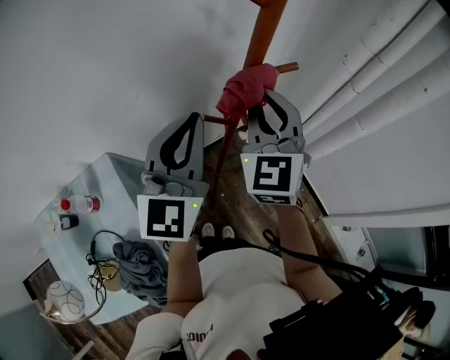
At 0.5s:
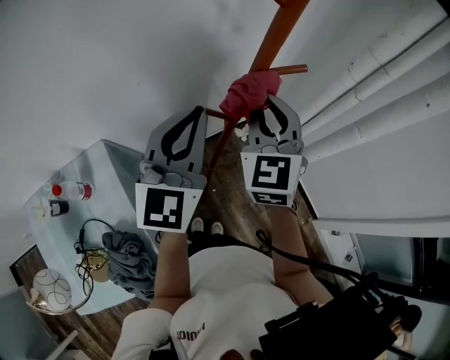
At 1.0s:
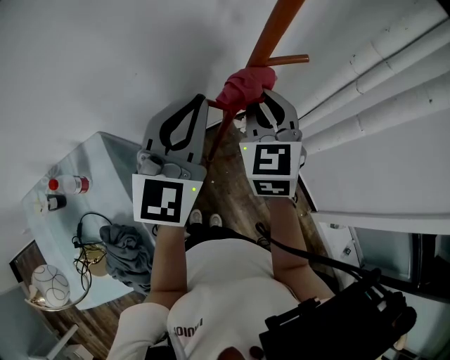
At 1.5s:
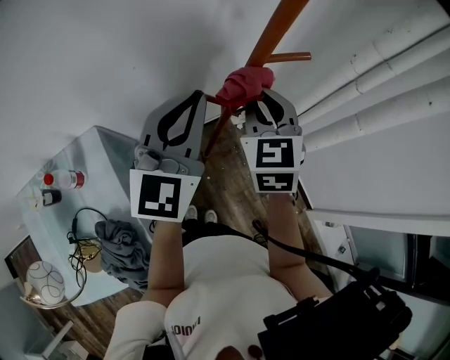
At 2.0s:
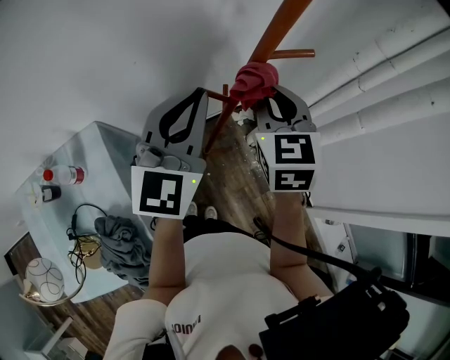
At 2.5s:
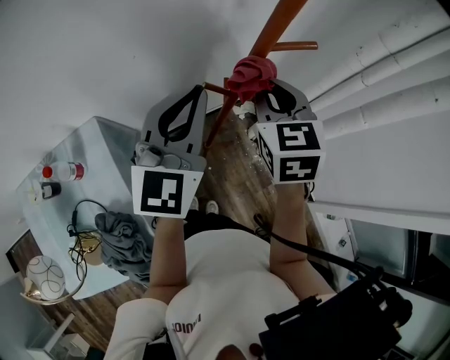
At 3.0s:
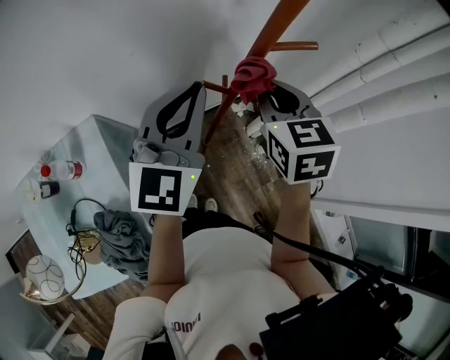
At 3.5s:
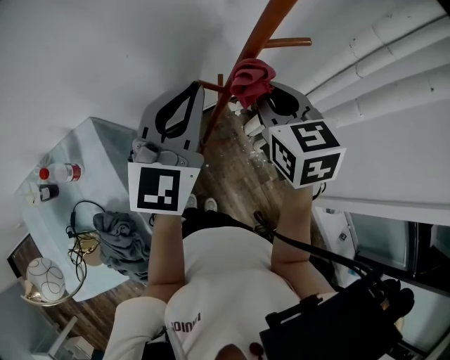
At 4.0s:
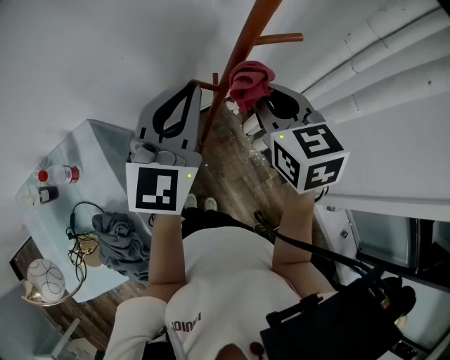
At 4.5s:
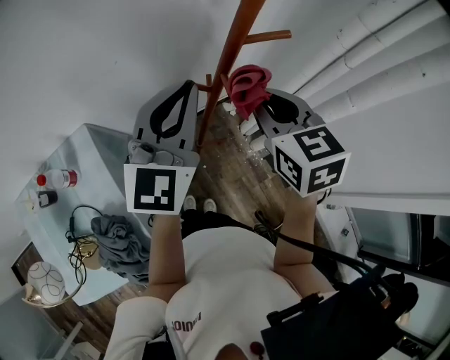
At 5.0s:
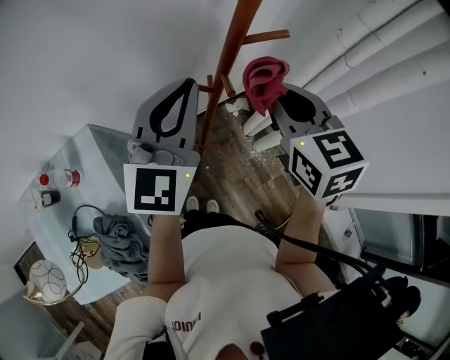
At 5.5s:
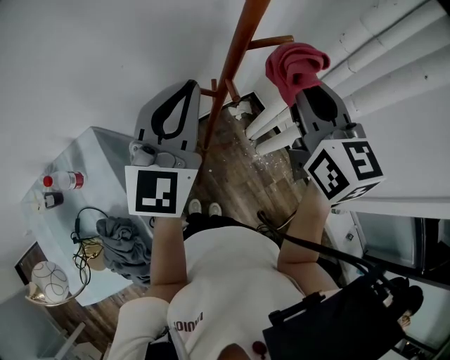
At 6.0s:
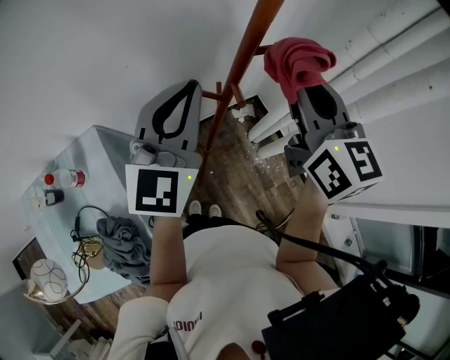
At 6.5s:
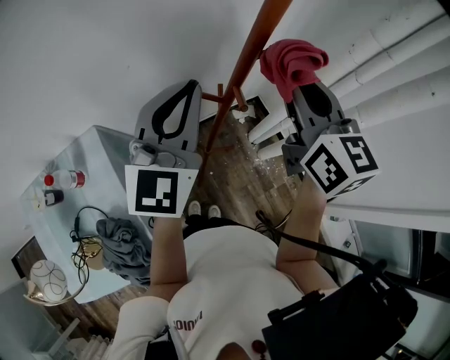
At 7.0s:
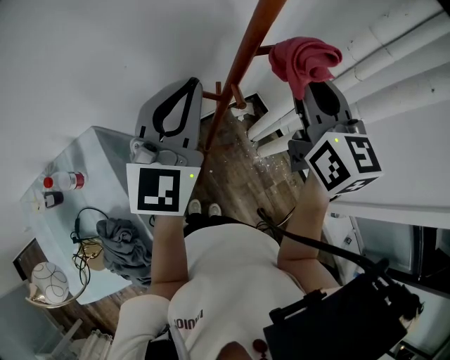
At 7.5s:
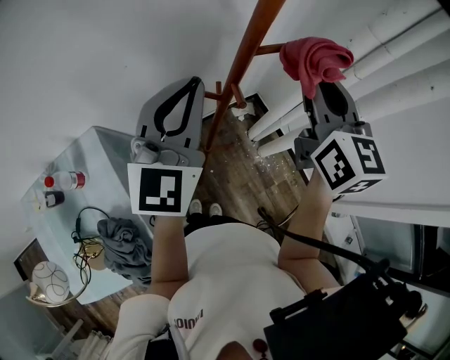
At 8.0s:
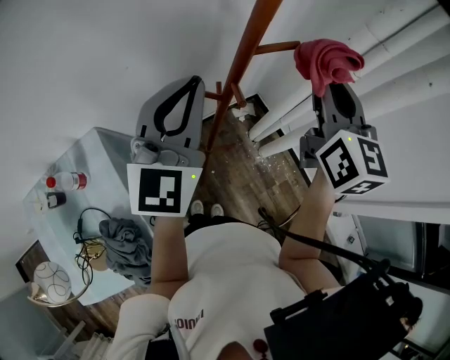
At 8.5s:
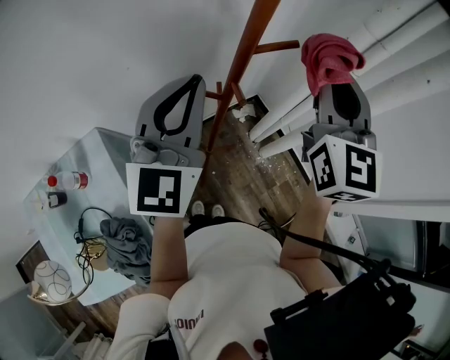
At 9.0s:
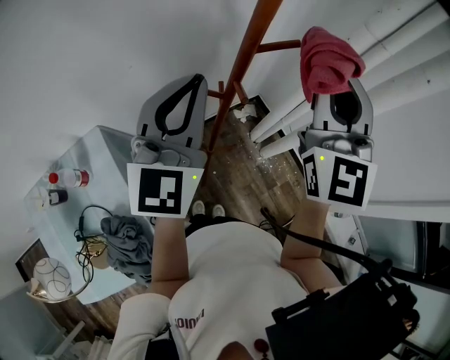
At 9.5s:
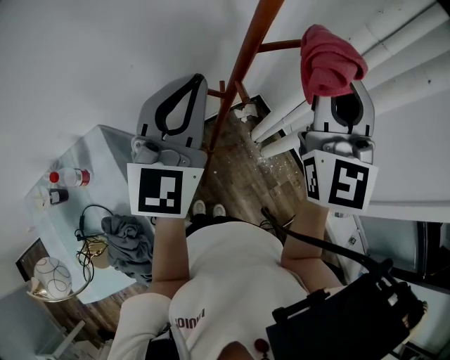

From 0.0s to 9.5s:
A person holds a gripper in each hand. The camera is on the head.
From 2.0s to 4.0s: The grippers move only a little.
From 4.0s to 5.5s: The right gripper heads upward, covering approximately 10 cm, and changes its angle by some 20 degrees.
From 5.5s to 7.5s: There are only small adjustments of the grippers.
From 7.5s to 9.5s: The right gripper travels upward by about 5 cm, and turns by approximately 30 degrees.

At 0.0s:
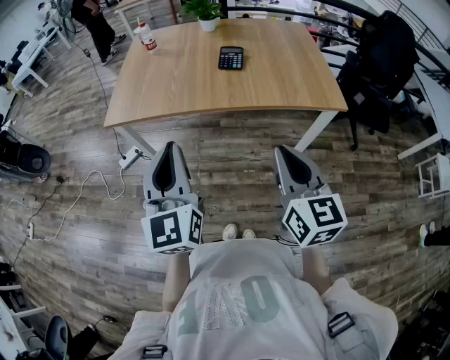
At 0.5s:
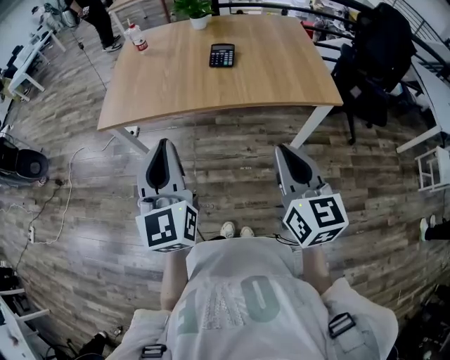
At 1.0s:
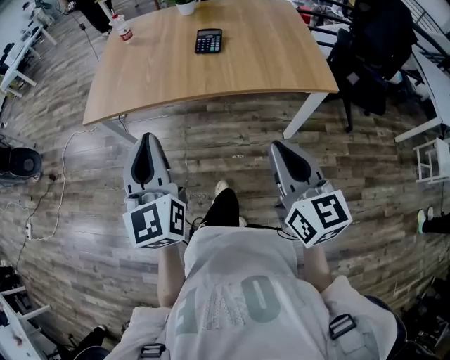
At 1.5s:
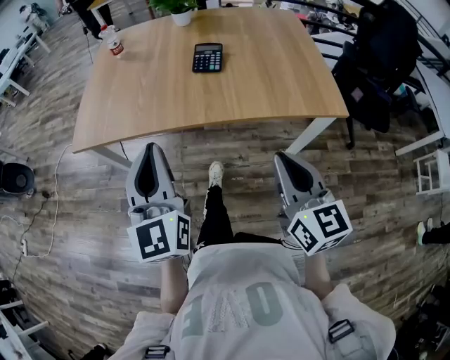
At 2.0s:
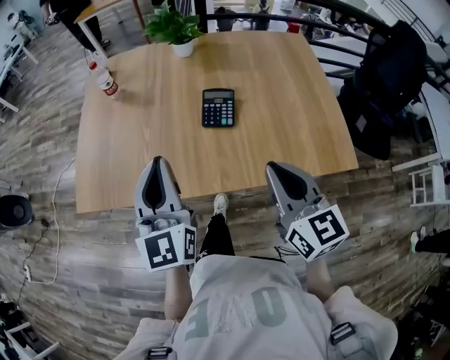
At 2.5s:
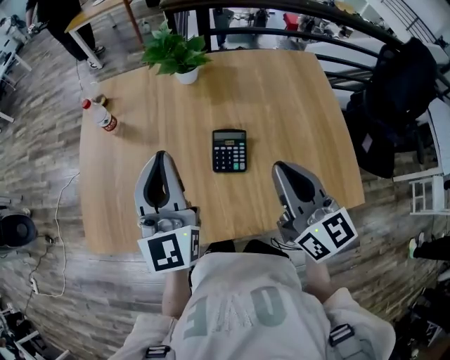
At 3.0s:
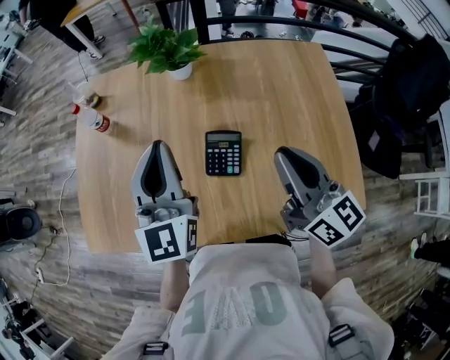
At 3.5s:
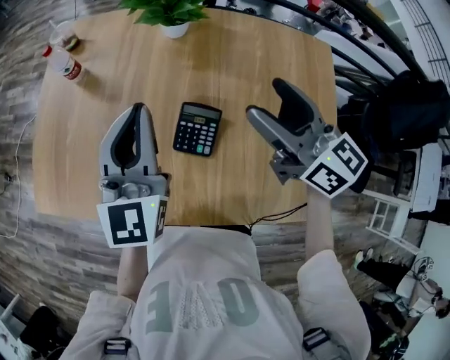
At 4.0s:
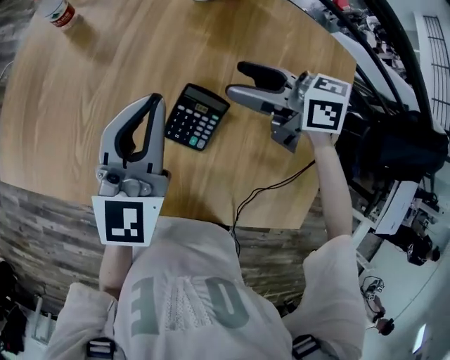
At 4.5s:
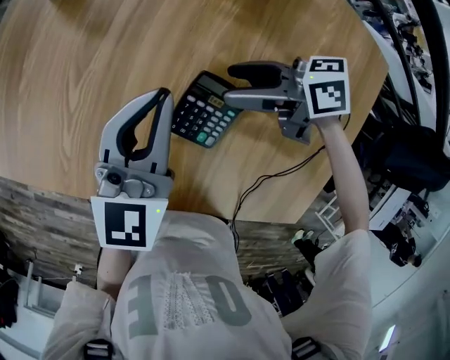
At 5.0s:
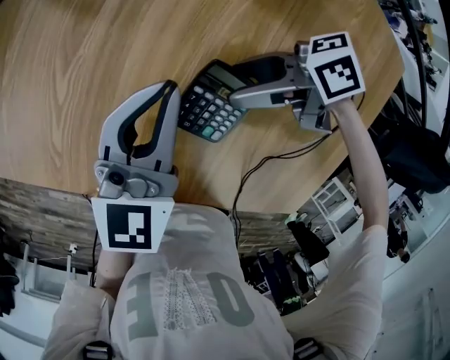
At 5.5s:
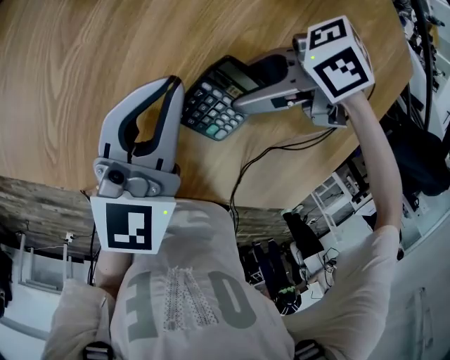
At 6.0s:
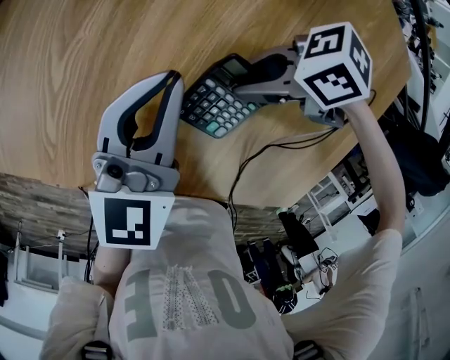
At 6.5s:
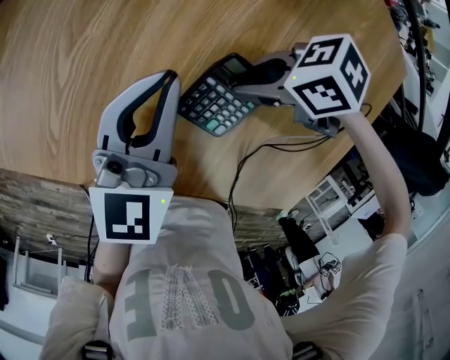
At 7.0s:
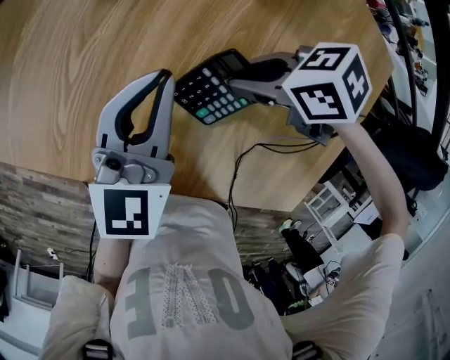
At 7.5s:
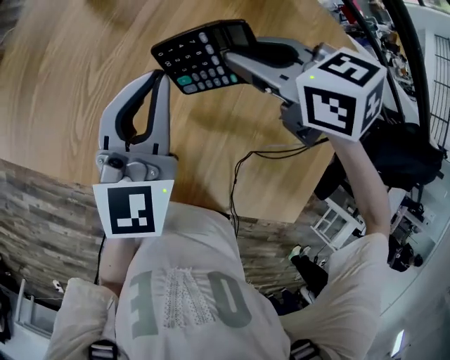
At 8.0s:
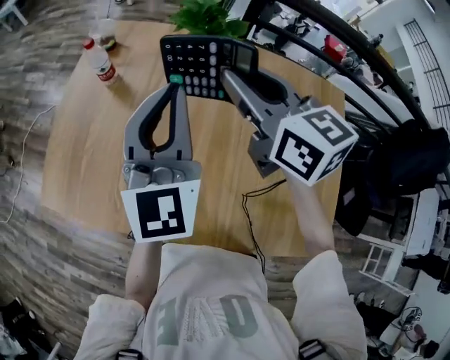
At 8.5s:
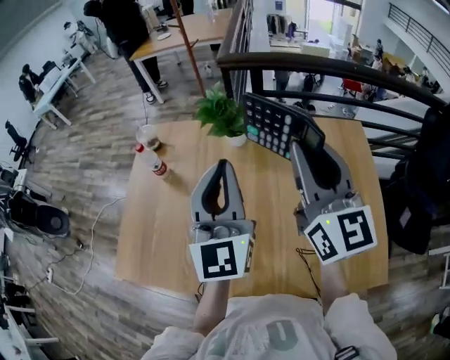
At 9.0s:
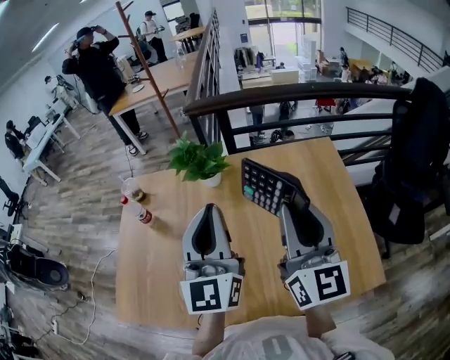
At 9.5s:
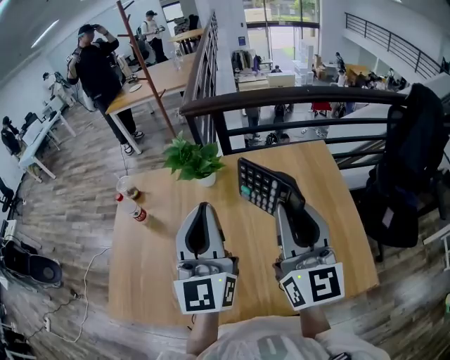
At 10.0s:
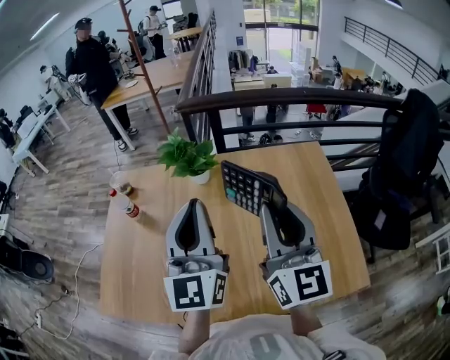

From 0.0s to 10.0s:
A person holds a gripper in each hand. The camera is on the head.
From 0.0s to 2.0s: Both grippers move forward, about 35 cm.
From 2.0s to 4.0s: The right gripper ends up roughly 40 cm from where it was, changes its angle by roughly 70 degrees, and opens its fingers, while the left gripper moves roughly 25 cm.
From 4.0s to 6.0s: Both grippers travel together downward, approximately 15 cm. The right gripper swivels roughly 60 degrees, and closes up.
From 6.0s to 8.0s: The grippers both shift upward by approximately 30 cm. The left gripper rotates approximately 30 degrees. Meanwhile the right gripper changes its angle by roughly 90 degrees.
From 8.0s to 10.0s: The right gripper changes place by about 20 cm, and swivels approximately 50 degrees. Meanwhile the left gripper moves approximately 15 cm.

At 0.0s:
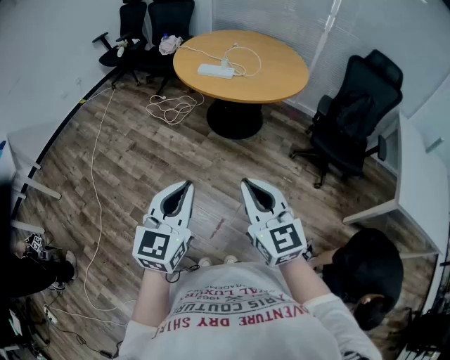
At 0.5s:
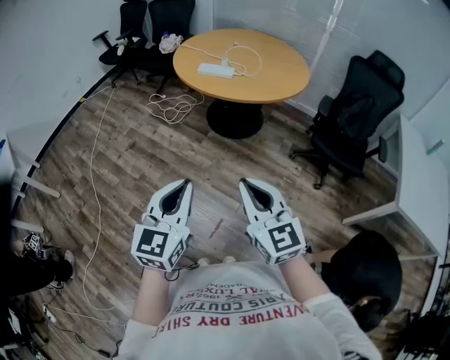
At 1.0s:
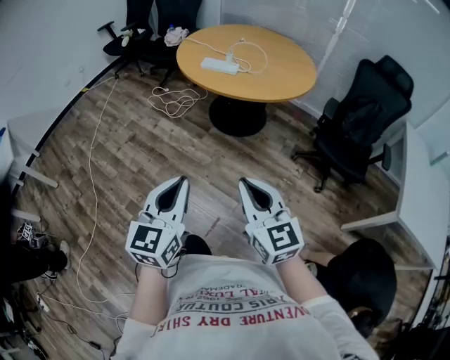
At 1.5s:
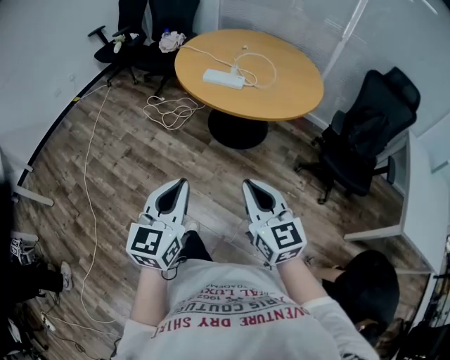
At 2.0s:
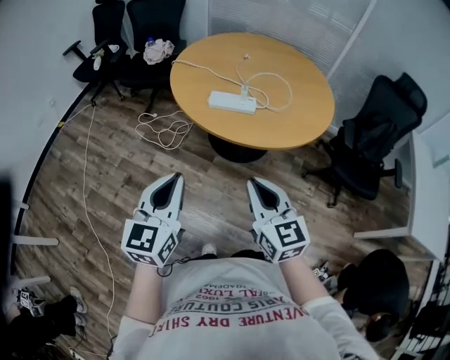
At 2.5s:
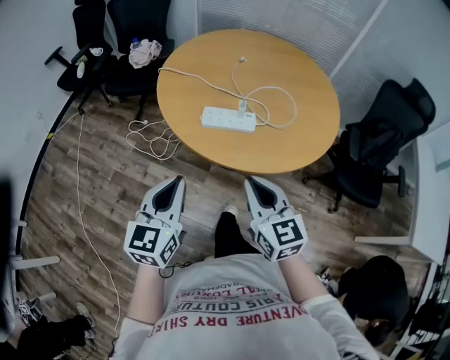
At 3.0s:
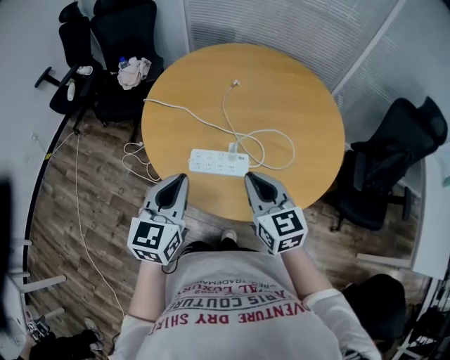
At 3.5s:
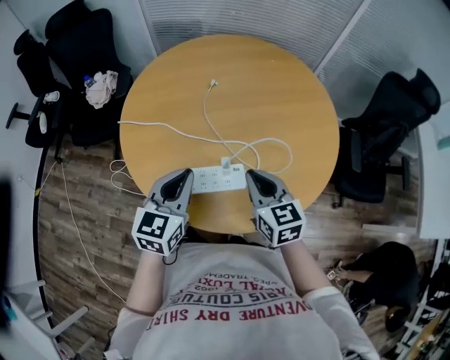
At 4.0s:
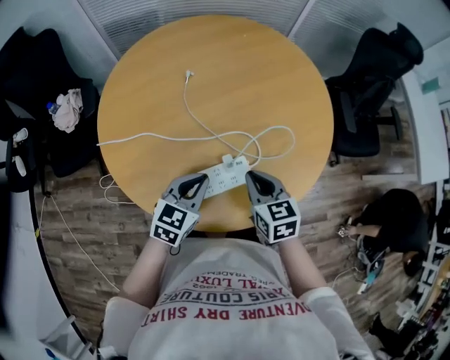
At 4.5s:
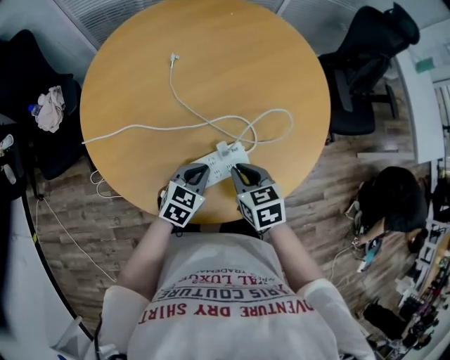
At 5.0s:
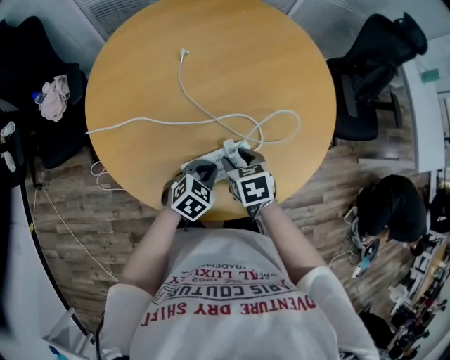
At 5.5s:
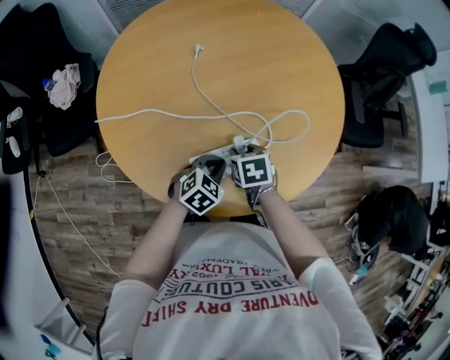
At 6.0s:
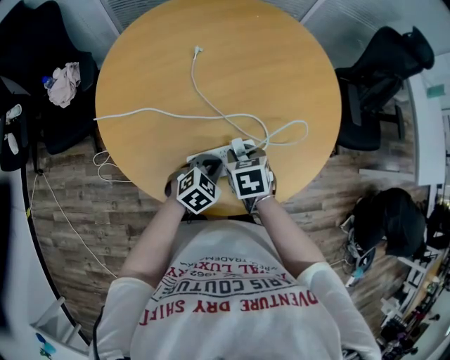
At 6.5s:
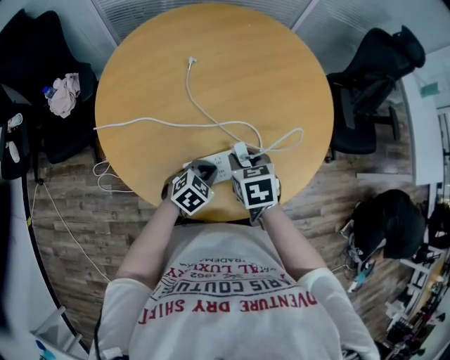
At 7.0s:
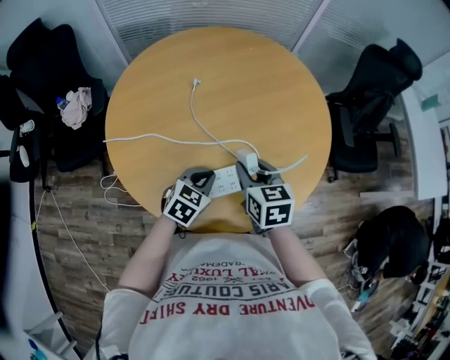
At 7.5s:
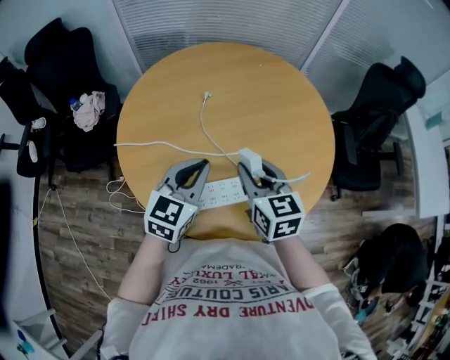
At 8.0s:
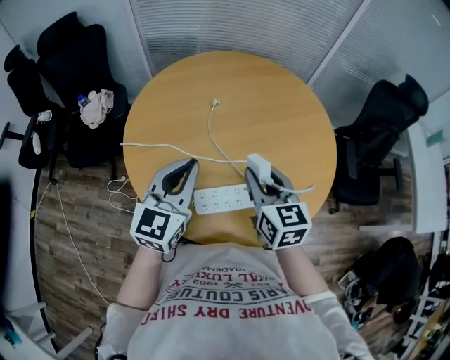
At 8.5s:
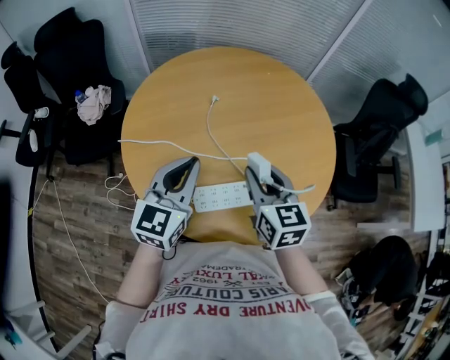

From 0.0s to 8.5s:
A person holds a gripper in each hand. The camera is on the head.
From 0.0s to 2.0s: The two grippers go roughly 40 cm forward.
From 2.0s to 4.0s: The two grippers travel together, about 50 cm. The left gripper changes its angle by some 50 degrees; the right gripper turns by about 40 degrees.
From 4.0s to 6.5s: The left gripper is displaced downward by approximately 10 cm, and rotates roughly 20 degrees; the right gripper travels downward and back again, roughly 10 cm each way, and opens.
From 6.5s to 8.5s: The left gripper heads upward, covering approximately 30 cm, and tilts its fingers roughly 40 degrees upward. Meanwhile the right gripper moves upward, approximately 15 cm, and tips its fingers upward by roughly 30 degrees.
